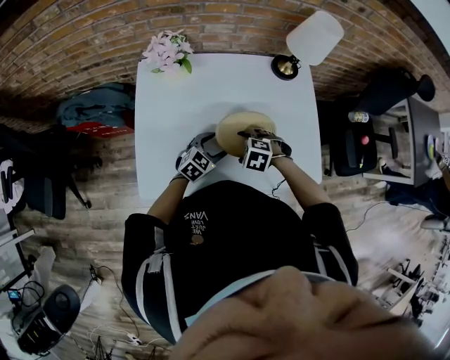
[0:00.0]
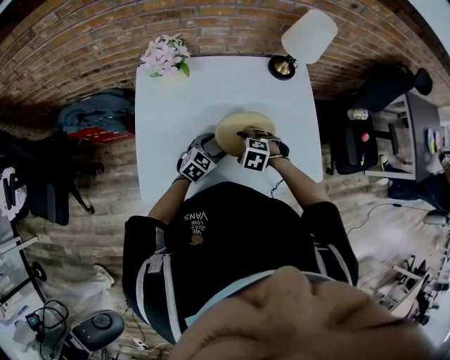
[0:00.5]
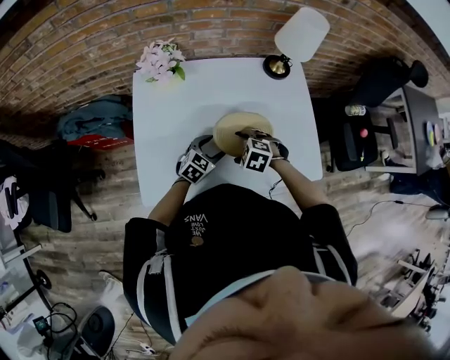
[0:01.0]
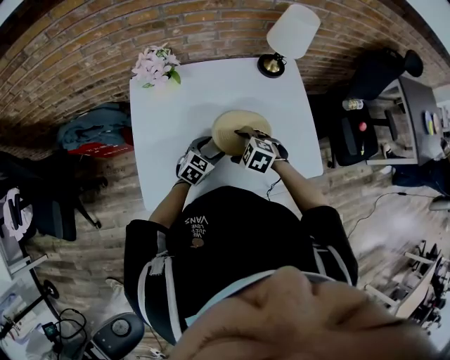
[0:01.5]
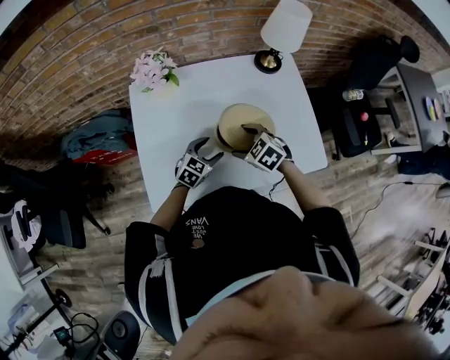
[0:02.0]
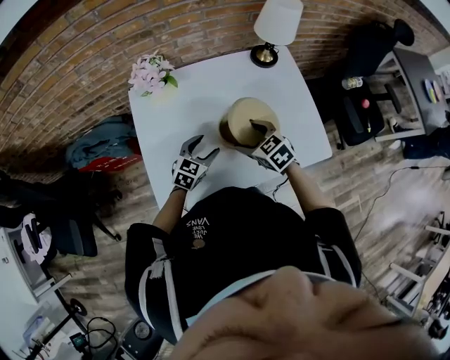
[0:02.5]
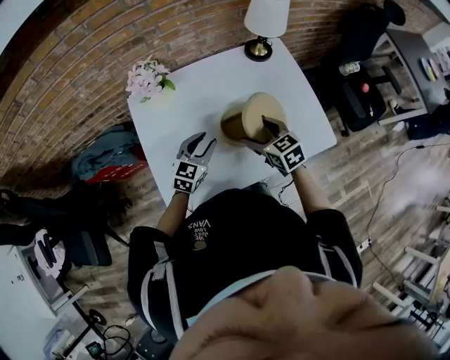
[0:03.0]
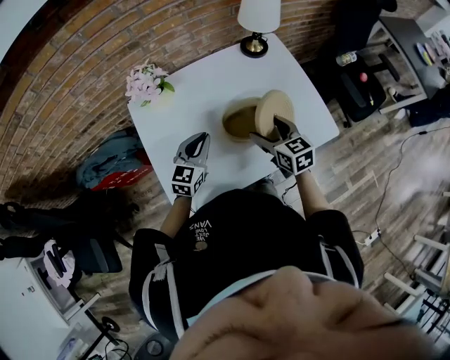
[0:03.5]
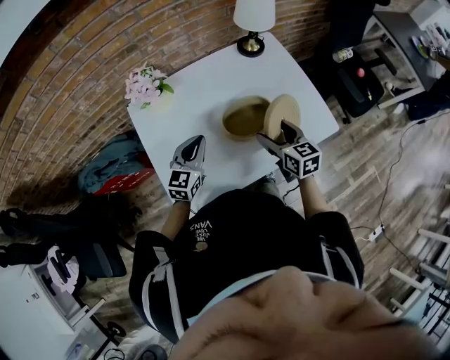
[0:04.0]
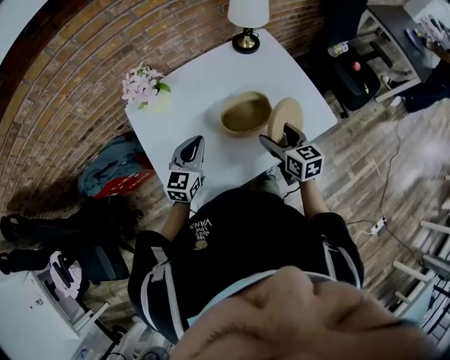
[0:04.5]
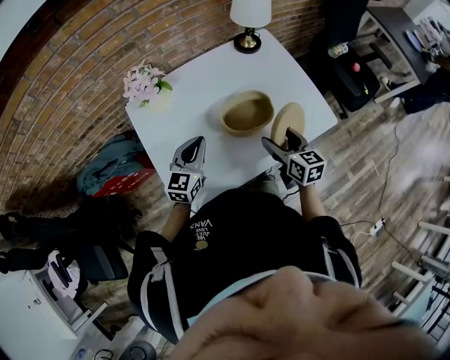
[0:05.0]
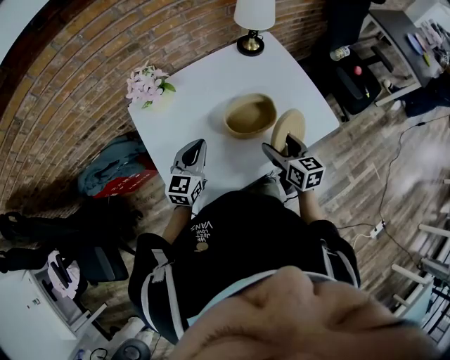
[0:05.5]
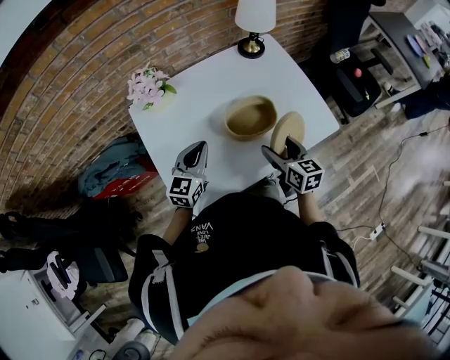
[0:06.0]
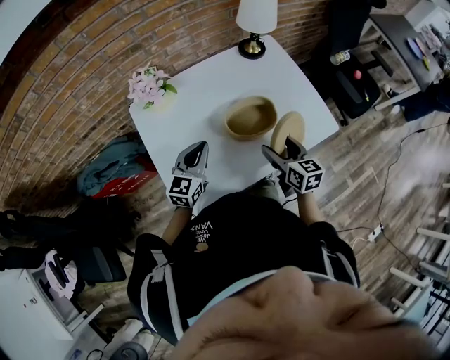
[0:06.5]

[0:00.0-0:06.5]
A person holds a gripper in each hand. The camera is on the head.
0:00.0 to 0:02.0: The right gripper heads upward, covering some 5 cm, and swivels roughly 30 degrees.
0:02.0 to 0:04.5: The left gripper goes some 15 cm upward and to the left, swivels roughly 20 degrees, and closes. Meanwhile the right gripper goes about 10 cm to the right, upward and backward, and tips its fingers upward by some 30 degrees.
0:04.5 to 0:06.5: There are only small adjustments of the grippers.

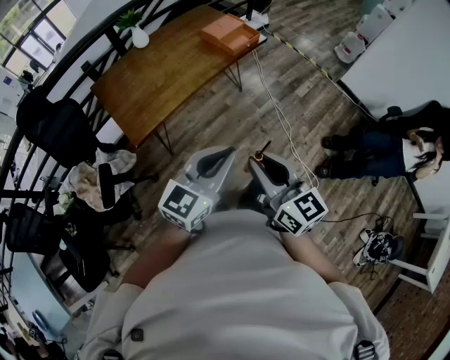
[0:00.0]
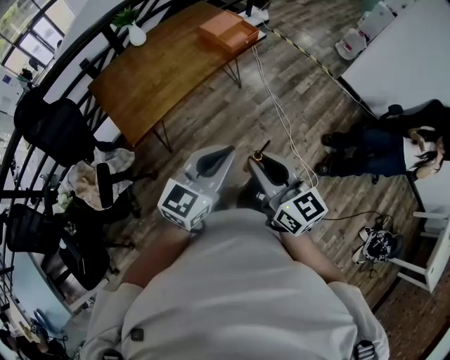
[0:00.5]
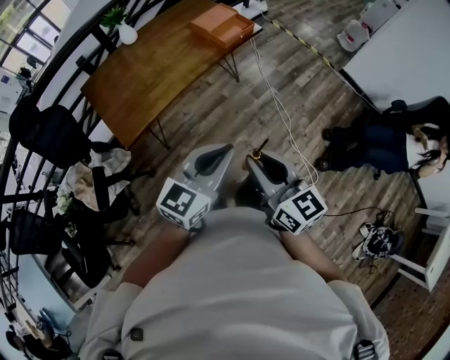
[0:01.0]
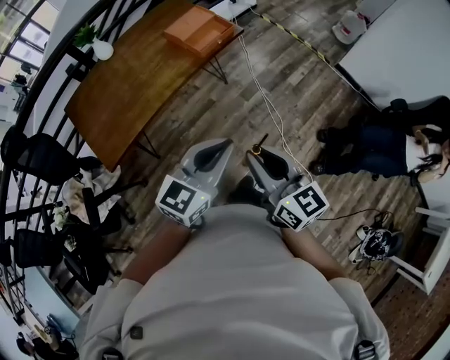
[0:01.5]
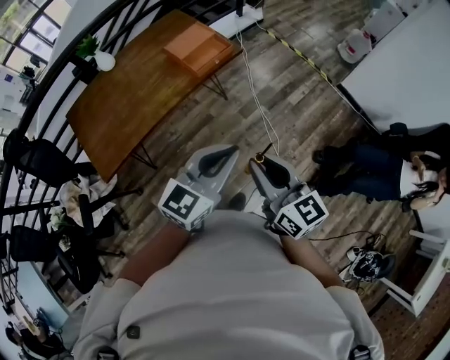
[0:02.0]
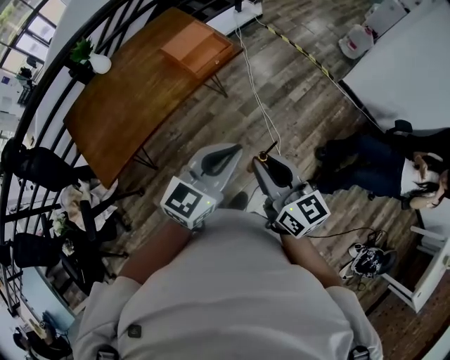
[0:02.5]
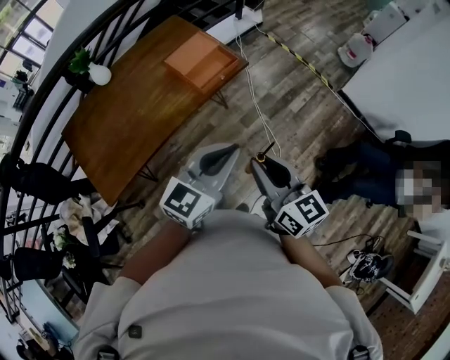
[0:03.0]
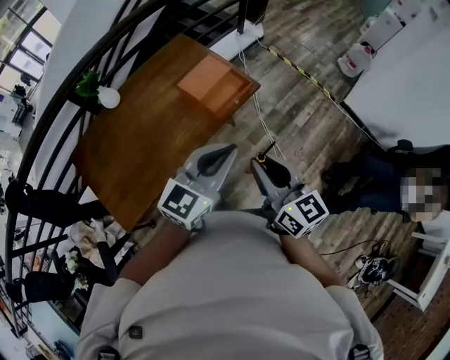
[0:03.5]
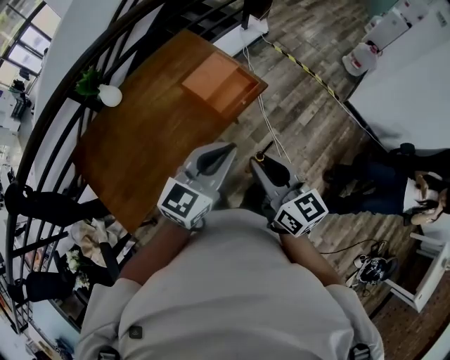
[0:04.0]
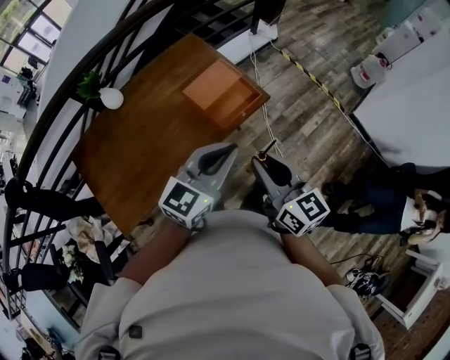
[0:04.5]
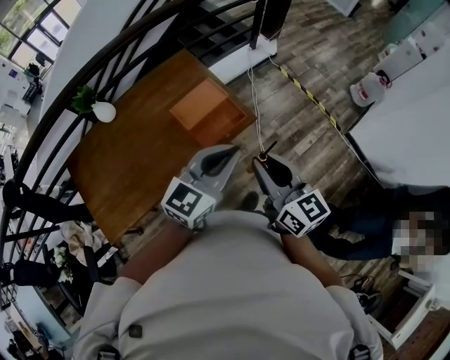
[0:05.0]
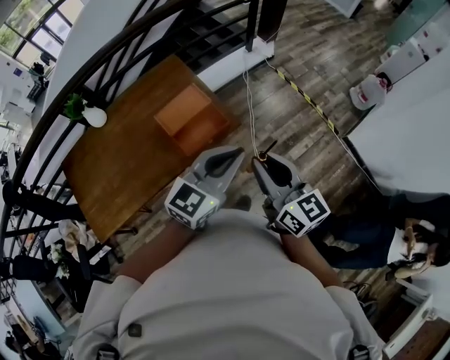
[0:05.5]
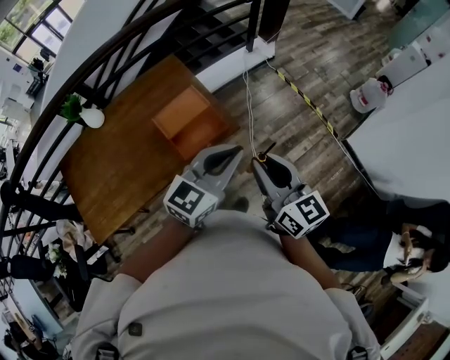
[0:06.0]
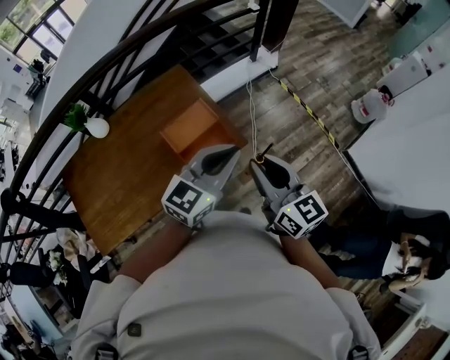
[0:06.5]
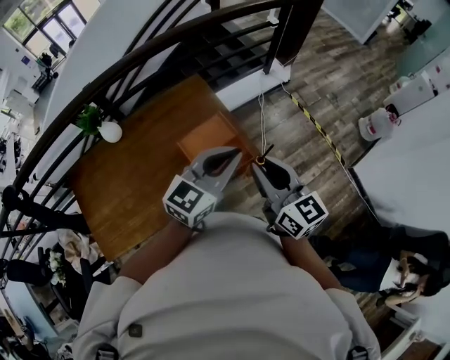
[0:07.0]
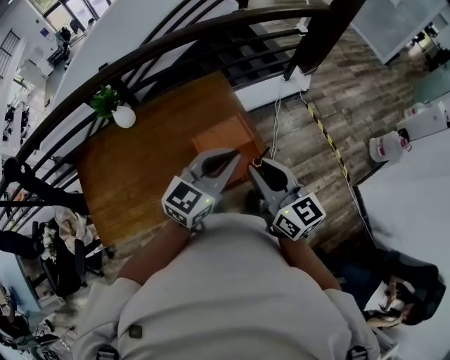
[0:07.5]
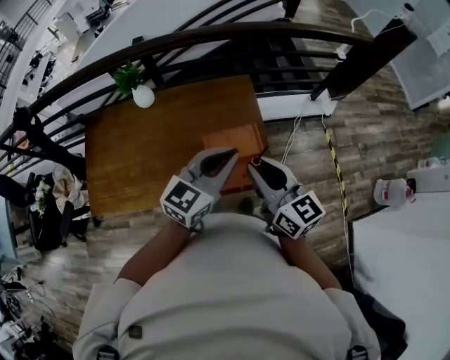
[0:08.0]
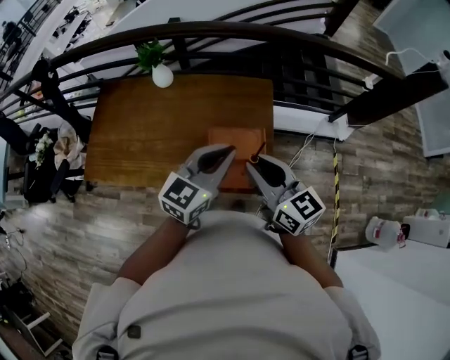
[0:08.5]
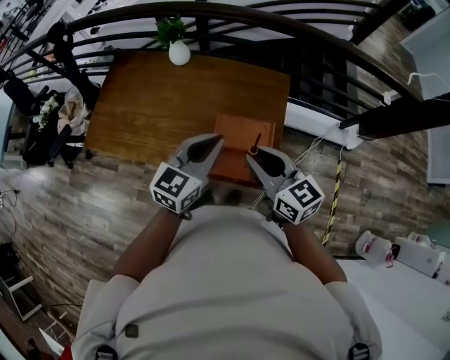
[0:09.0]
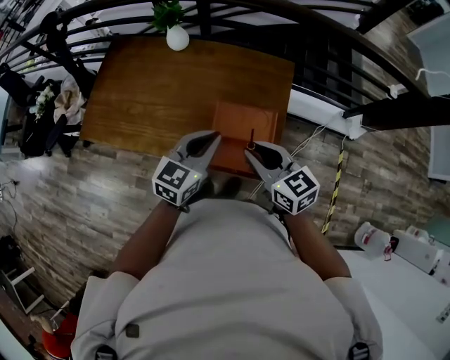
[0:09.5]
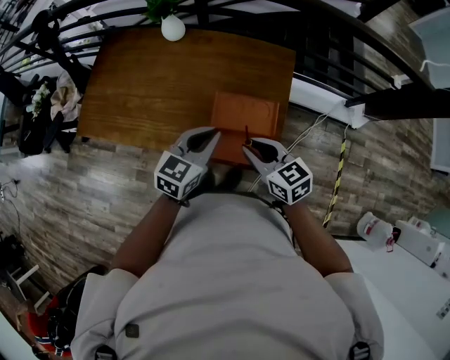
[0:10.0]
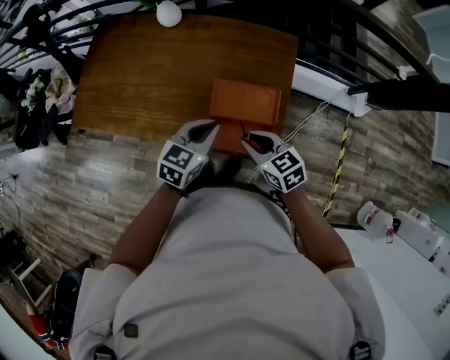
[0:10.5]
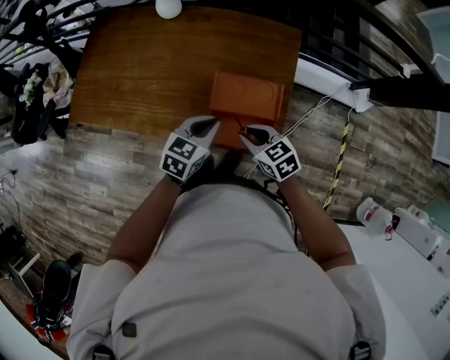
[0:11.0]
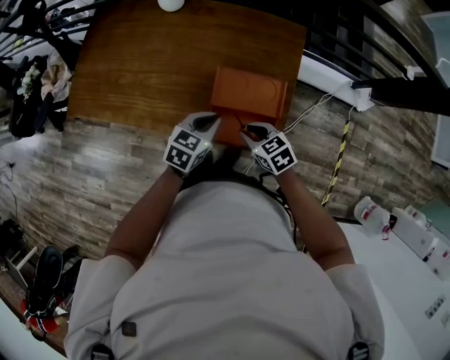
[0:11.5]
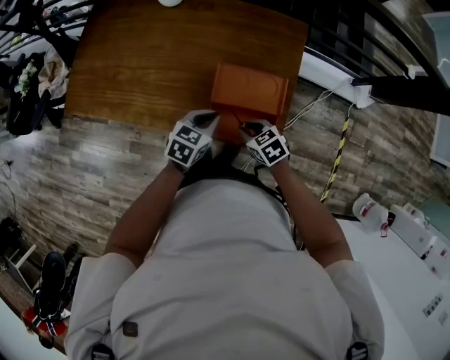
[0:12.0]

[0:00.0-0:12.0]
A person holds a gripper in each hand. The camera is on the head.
0:00.0 to 0:02.0: The two grippers go approximately 40 cm forward and to the right.
0:02.0 to 0:04.0: The grippers both shift forward and to the left by approximately 35 cm.
0:04.0 to 0:06.0: The two grippers go approximately 30 cm to the right and forward.
0:06.0 to 0:08.0: The left gripper changes place by some 30 cm, and rotates roughly 30 degrees; the right gripper shifts by some 30 cm, and changes its angle by about 30 degrees.
0:08.0 to 0:10.0: Both grippers travel together downward, roughly 15 cm. The left gripper rotates roughly 30 degrees. The right gripper changes its angle by about 40 degrees.
0:10.0 to 0:12.0: Both grippers move downward, about 20 cm. The right gripper turns by roughly 30 degrees. The left gripper changes its angle by about 20 degrees.

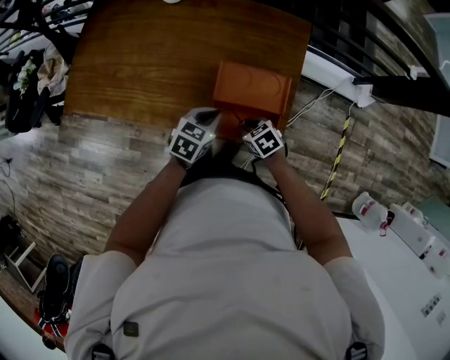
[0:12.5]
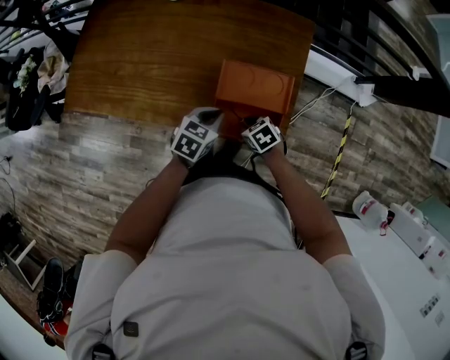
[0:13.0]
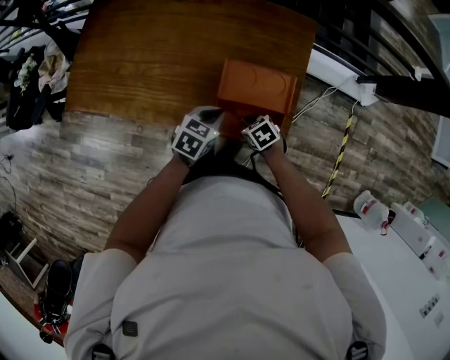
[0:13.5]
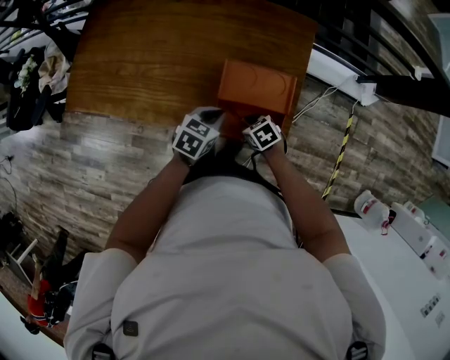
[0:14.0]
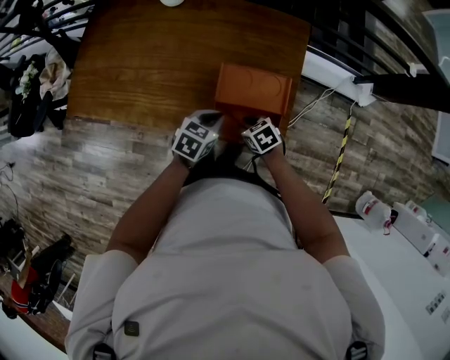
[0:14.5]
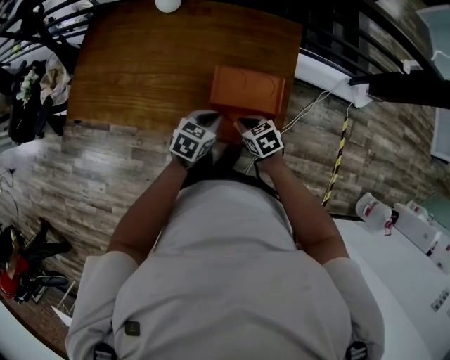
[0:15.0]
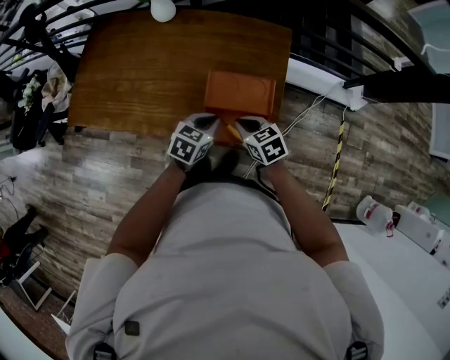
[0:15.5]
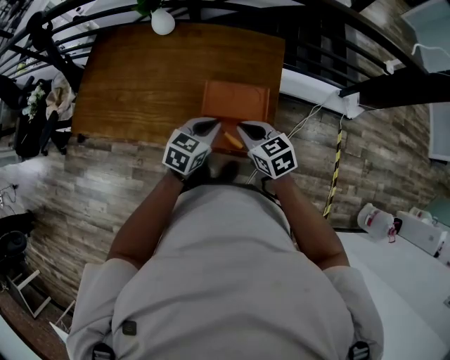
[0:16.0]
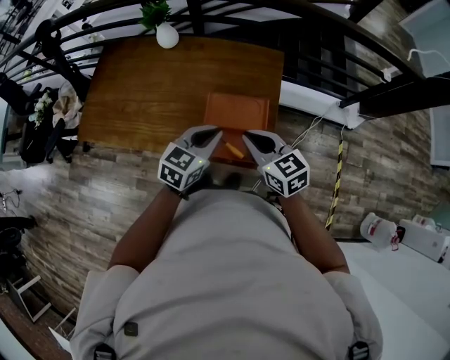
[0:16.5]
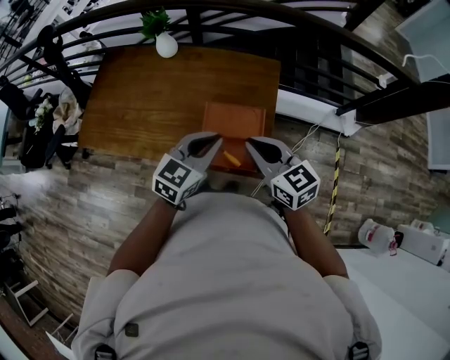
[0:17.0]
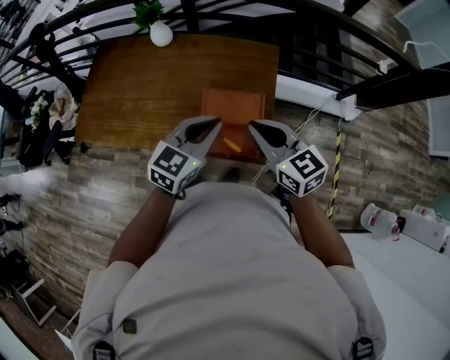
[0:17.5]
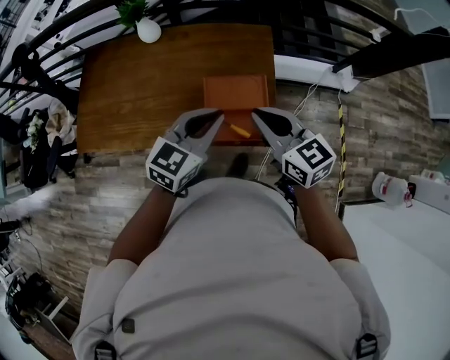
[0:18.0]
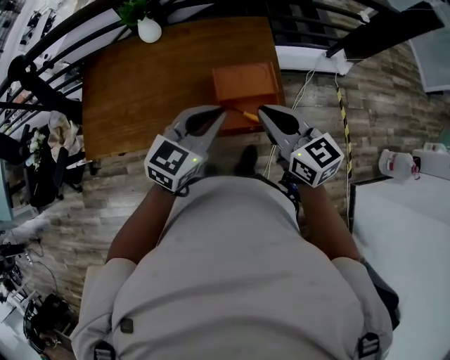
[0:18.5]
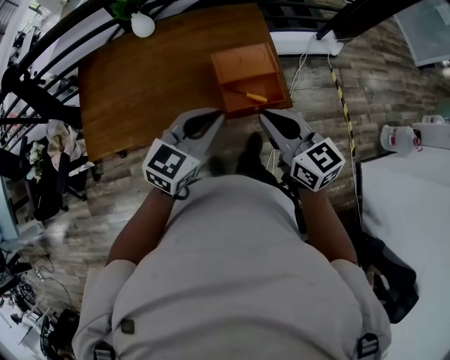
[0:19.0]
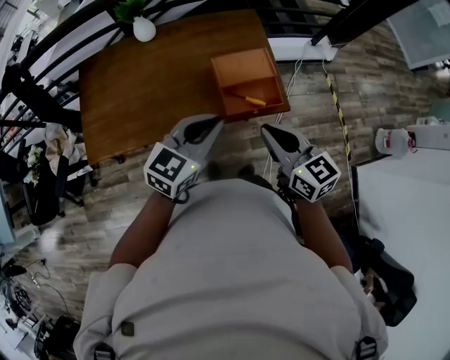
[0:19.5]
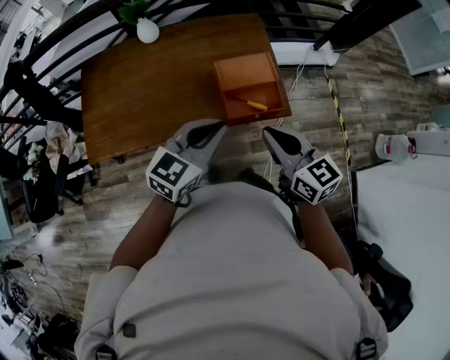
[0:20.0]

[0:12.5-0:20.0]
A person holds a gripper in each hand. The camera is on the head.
0:12.5 to 0:14.5: There are only small adjustments of the grippers.
0:14.5 to 0:16.5: The right gripper is displaced upward by some 30 cm, points its fingers roughly 30 degrees further upward, and closes its fingers. The left gripper moves upward, roughly 20 cm, and swivels about 20 degrees.
0:16.5 to 0:18.0: Both grippers move upward, about 10 cm.
0:18.0 to 0:20.0: The two grippers go roughly 20 cm backward and to the left.

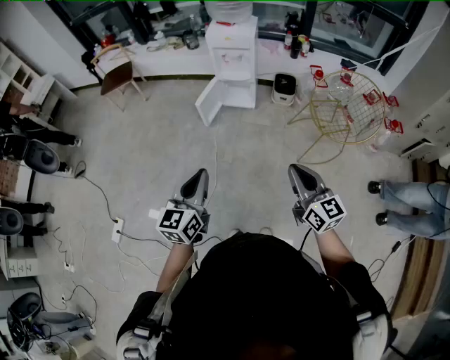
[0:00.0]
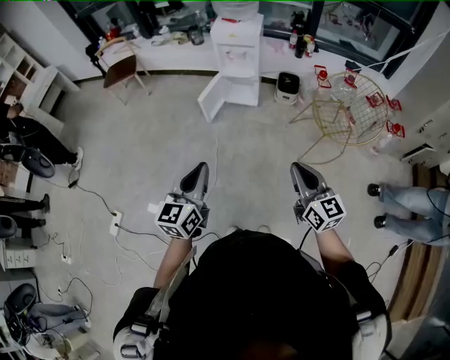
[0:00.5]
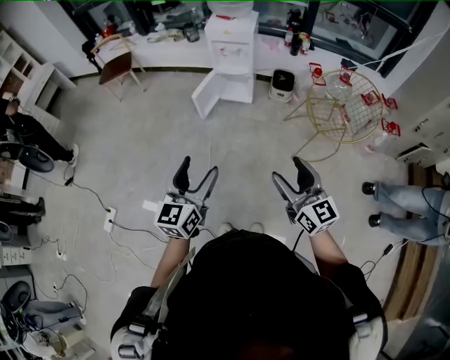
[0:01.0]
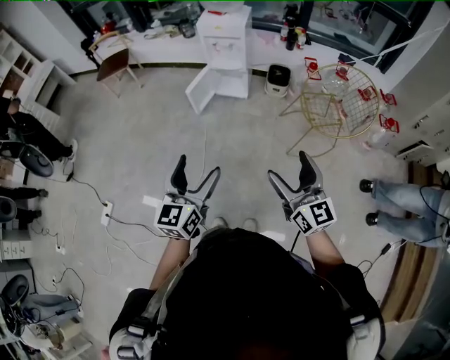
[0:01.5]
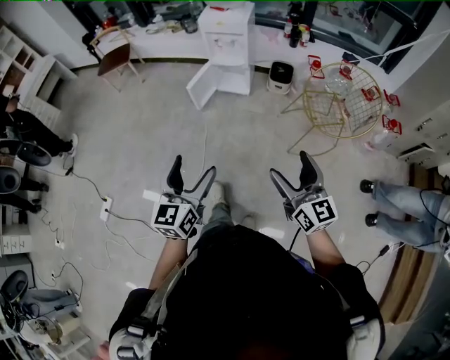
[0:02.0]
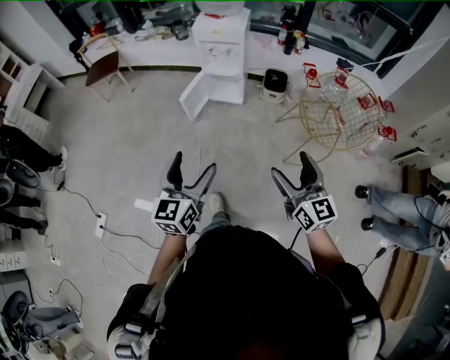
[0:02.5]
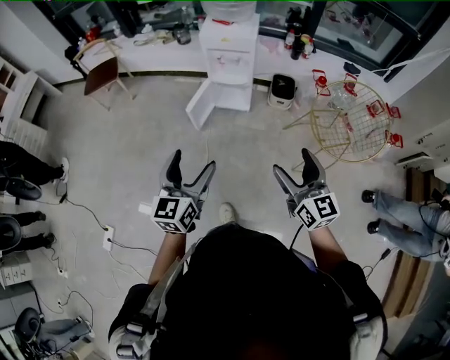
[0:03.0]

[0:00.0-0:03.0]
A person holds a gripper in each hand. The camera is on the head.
0:00.0 to 0:01.5: Both grippers travel together to the right, approximately 10 cm. The left gripper opens, while the right gripper opens up.
0:01.5 to 0:03.0: The right gripper goes some 20 cm forward, while the left gripper heads forward and to the left, covering approximately 25 cm.
